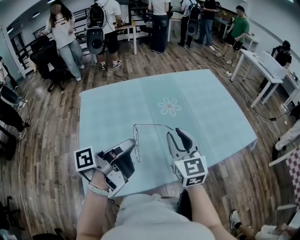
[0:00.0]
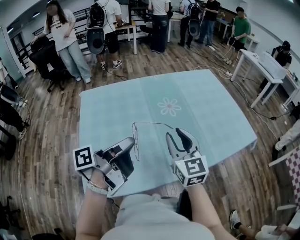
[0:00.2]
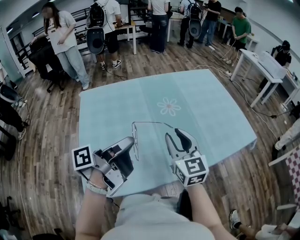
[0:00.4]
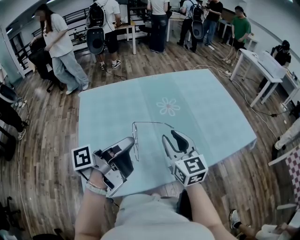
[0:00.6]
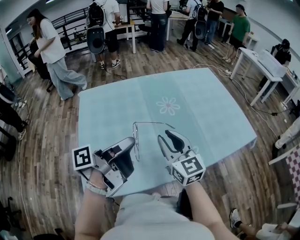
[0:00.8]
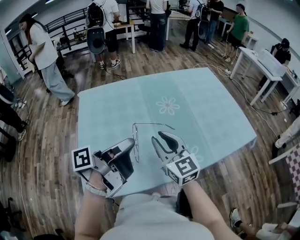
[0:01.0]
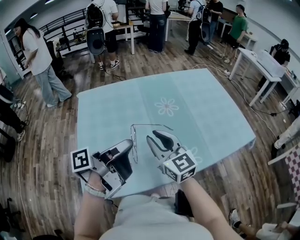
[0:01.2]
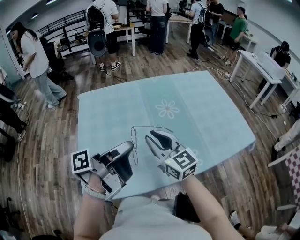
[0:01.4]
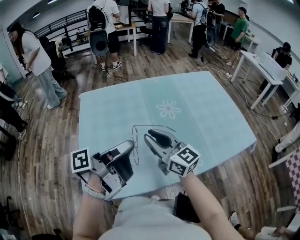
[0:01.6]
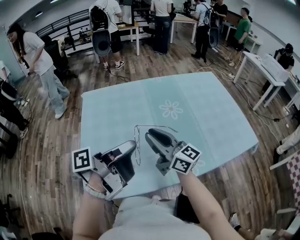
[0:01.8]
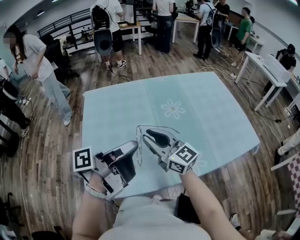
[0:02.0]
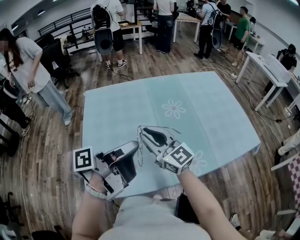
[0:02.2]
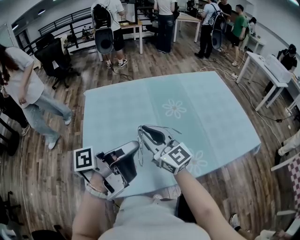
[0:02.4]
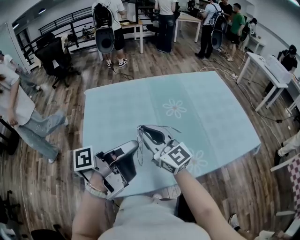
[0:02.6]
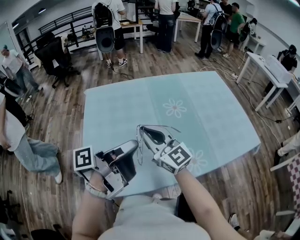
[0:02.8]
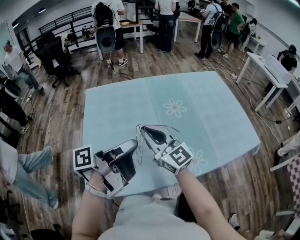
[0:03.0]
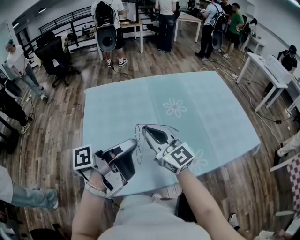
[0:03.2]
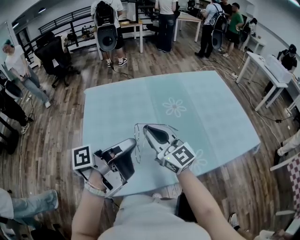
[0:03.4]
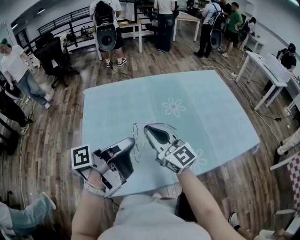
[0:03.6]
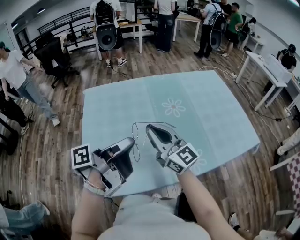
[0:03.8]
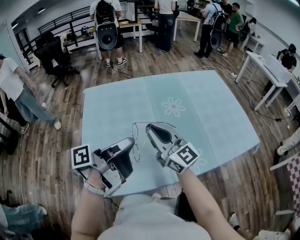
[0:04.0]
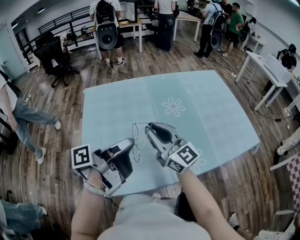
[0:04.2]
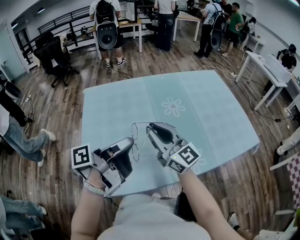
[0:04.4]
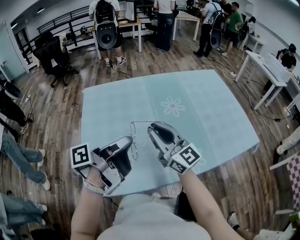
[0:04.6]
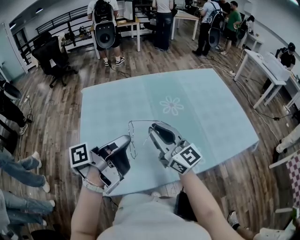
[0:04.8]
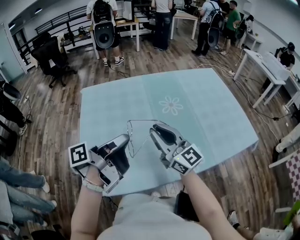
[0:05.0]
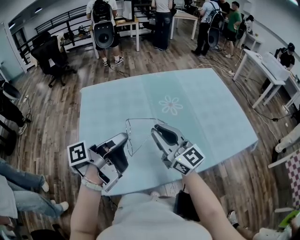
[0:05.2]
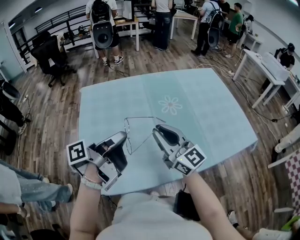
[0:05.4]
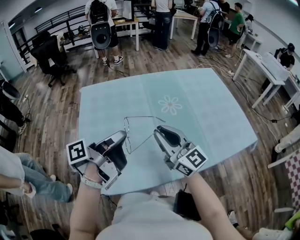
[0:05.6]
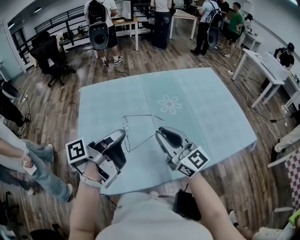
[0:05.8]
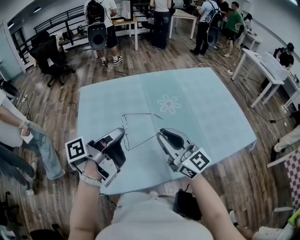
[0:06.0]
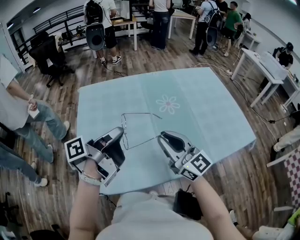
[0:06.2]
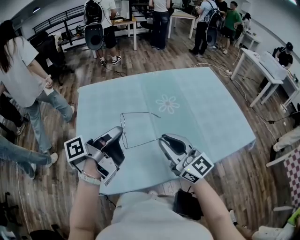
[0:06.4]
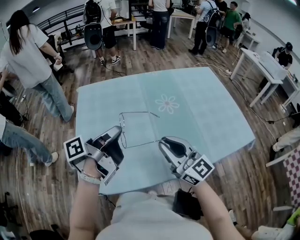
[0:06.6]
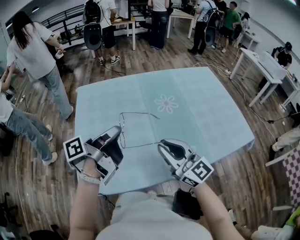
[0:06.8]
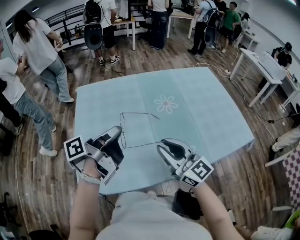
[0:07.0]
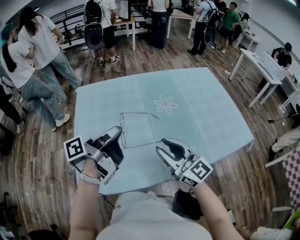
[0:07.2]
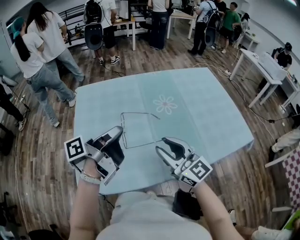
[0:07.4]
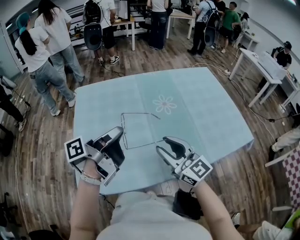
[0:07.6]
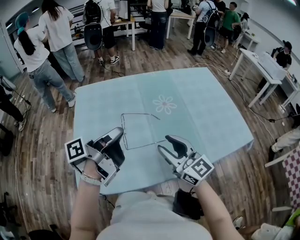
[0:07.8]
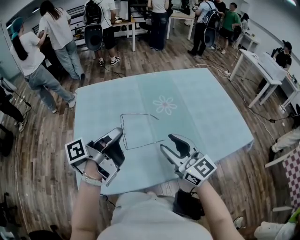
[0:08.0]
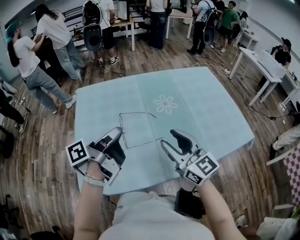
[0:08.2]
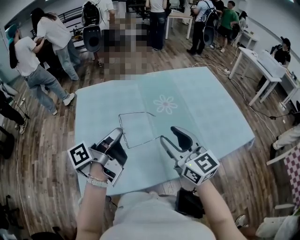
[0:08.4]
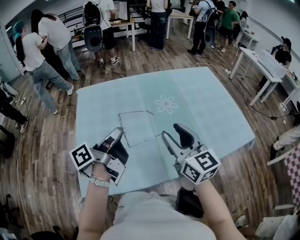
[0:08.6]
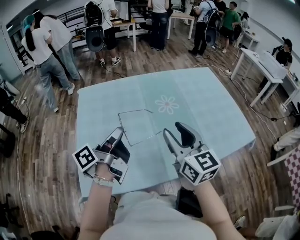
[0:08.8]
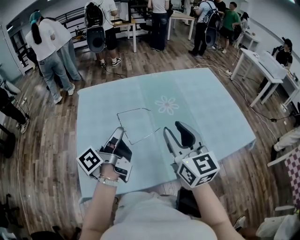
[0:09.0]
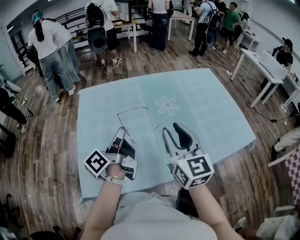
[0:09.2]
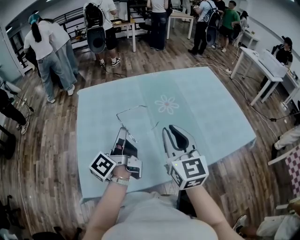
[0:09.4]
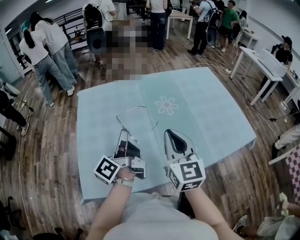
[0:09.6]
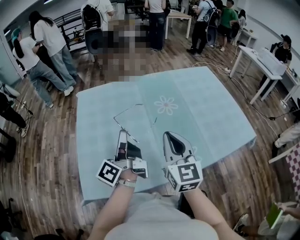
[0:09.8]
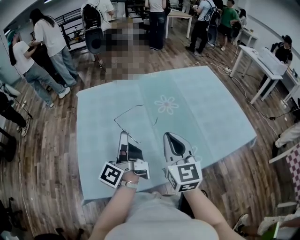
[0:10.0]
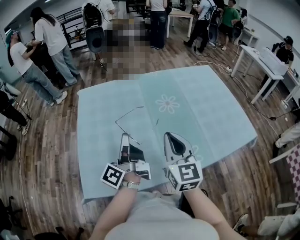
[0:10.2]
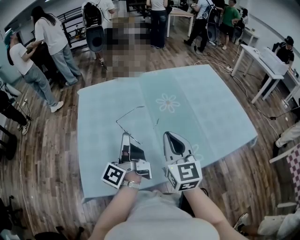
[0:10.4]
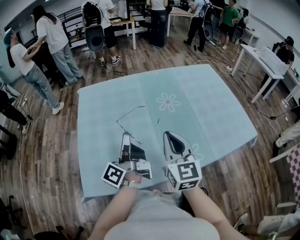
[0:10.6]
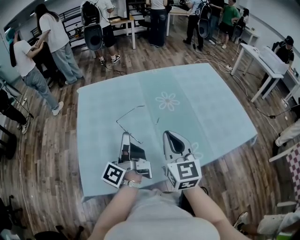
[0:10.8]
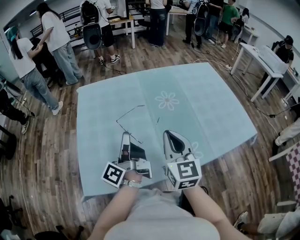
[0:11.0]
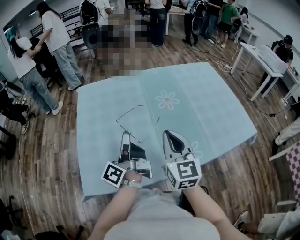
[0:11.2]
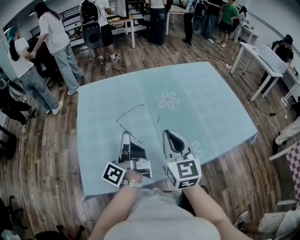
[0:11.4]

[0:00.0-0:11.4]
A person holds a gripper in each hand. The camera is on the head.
0:00.0 to 0:01.4: The right gripper shifts by some 5 cm, and rotates about 20 degrees.
0:01.4 to 0:02.8: The right gripper ends up some 5 cm from where it was.
0:04.2 to 0:05.6: The right gripper ends up some 5 cm from where it was.
0:05.6 to 0:07.2: The right gripper moves some 5 cm.
0:07.2 to 0:08.6: The right gripper ends up roughly 5 cm from where it was, and turns by some 20 degrees.
0:08.6 to 0:10.0: The right gripper closes.

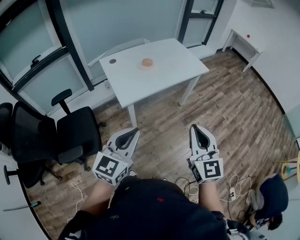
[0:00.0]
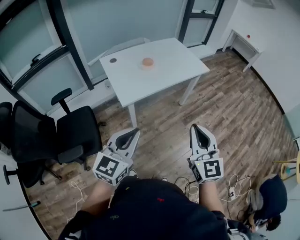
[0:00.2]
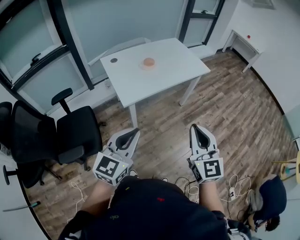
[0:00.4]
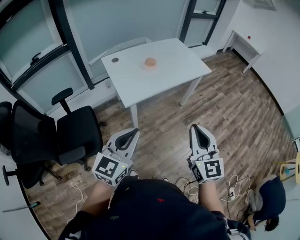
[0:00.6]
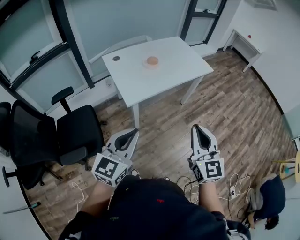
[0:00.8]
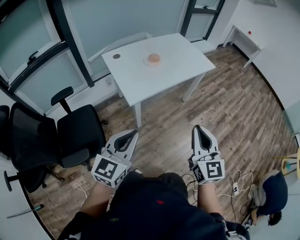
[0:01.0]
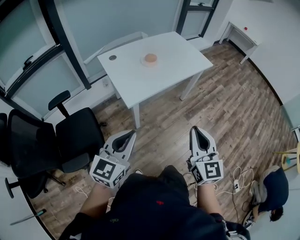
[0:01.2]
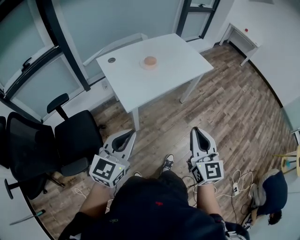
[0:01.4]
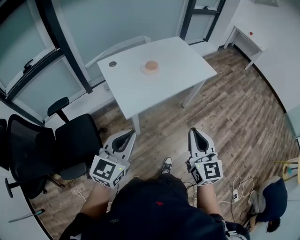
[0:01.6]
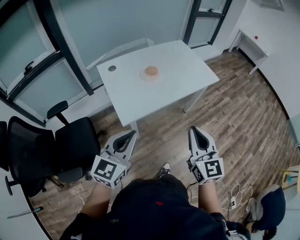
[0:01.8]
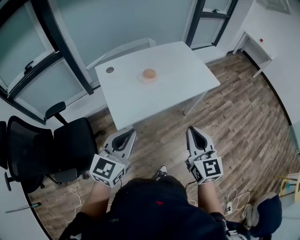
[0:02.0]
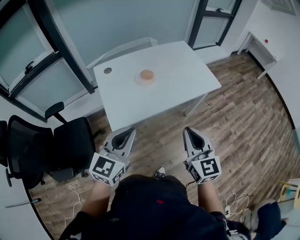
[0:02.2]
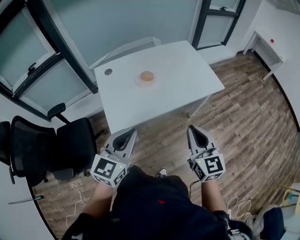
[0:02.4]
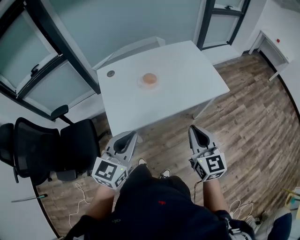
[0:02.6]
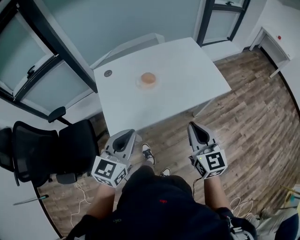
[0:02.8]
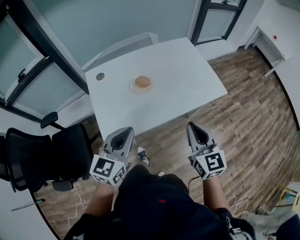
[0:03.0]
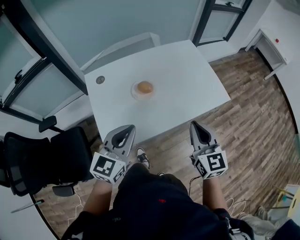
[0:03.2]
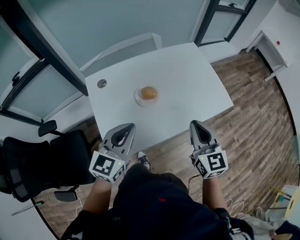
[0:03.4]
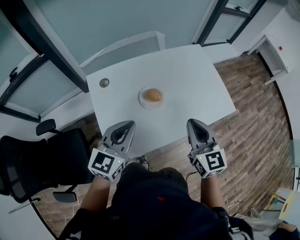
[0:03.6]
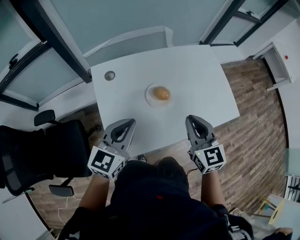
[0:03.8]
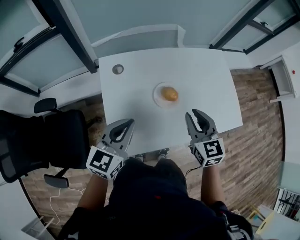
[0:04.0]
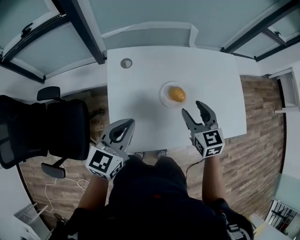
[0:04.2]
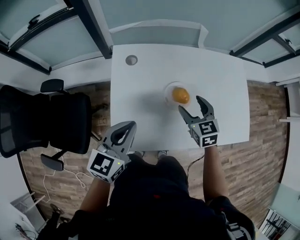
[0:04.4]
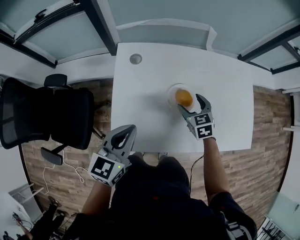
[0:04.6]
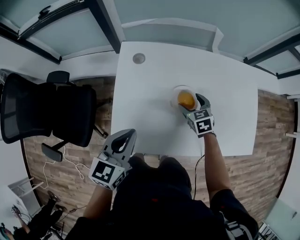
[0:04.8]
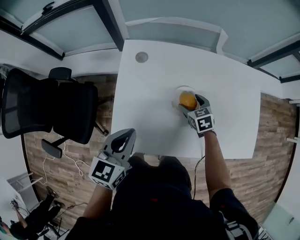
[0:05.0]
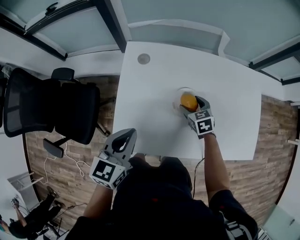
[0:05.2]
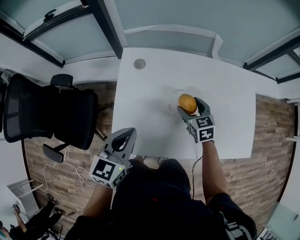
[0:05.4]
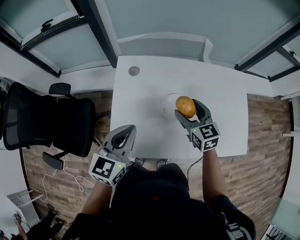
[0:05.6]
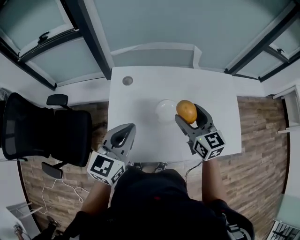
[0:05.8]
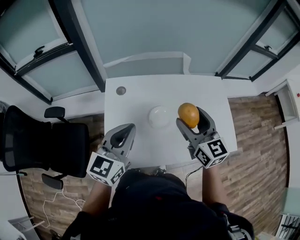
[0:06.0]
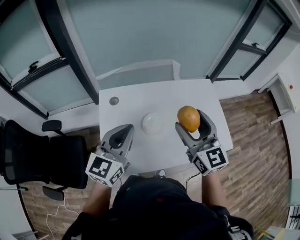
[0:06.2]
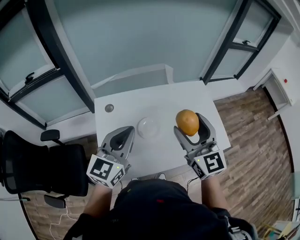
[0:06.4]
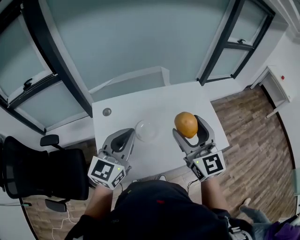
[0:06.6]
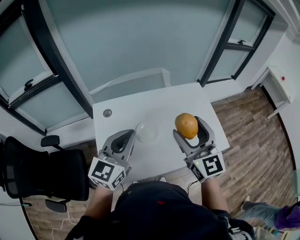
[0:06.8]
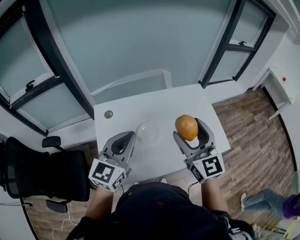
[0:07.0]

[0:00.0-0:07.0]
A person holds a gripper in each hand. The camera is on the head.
0:00.0 to 0:01.4: Both grippers move to the left and forward, approximately 10 cm.
0:01.4 to 0:02.8: The right gripper travels forward by some 35 cm, and changes its angle by some 20 degrees. The left gripper heads forward and to the right, covering roughly 30 cm.
0:02.8 to 0:04.2: The two grippers go about 30 cm forward and to the left. The right gripper swivels some 30 degrees, and opens up.
0:04.2 to 0:05.6: The right gripper heads forward, covering roughly 5 cm, goes downward and returns, some 20 cm each way, and opens up.
0:05.6 to 0:07.0: The right gripper moves upward, to the right and backward, some 30 cm, and turns by about 30 degrees. The left gripper is displaced upward and to the right by about 15 cm, and changes its angle by approximately 20 degrees.

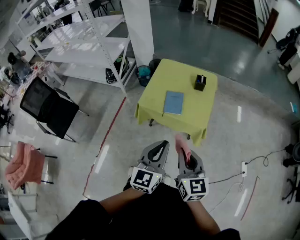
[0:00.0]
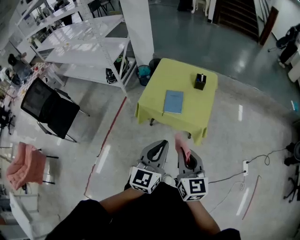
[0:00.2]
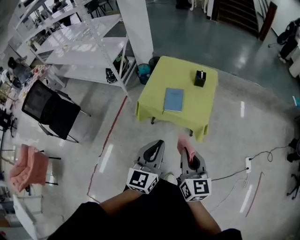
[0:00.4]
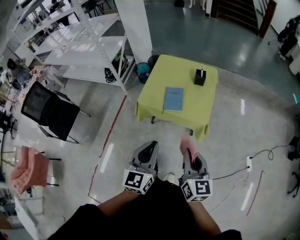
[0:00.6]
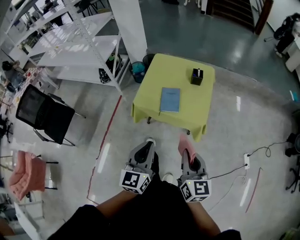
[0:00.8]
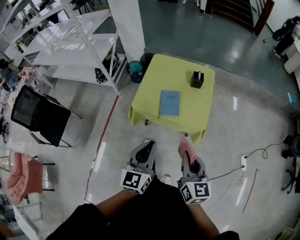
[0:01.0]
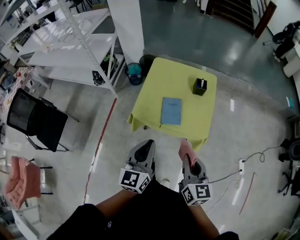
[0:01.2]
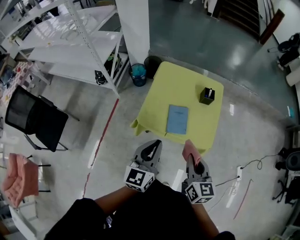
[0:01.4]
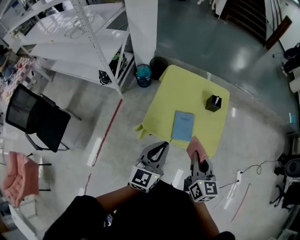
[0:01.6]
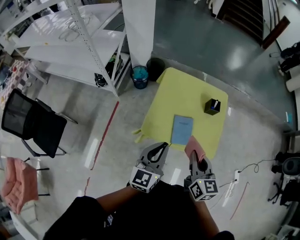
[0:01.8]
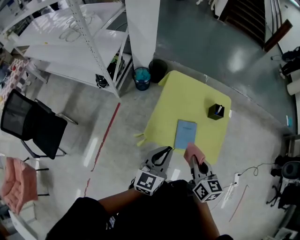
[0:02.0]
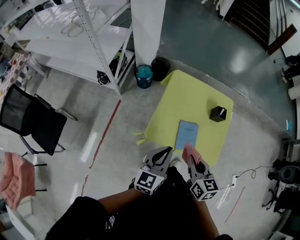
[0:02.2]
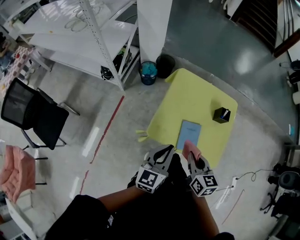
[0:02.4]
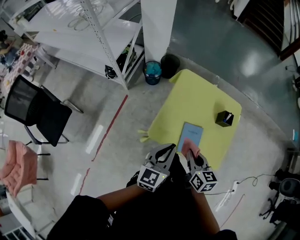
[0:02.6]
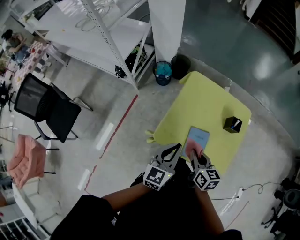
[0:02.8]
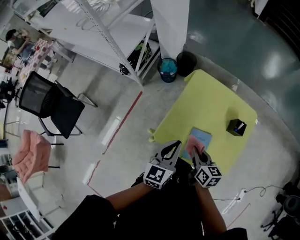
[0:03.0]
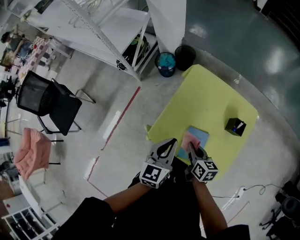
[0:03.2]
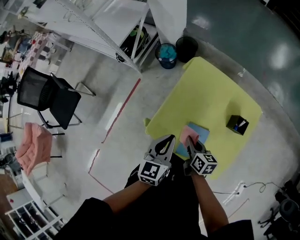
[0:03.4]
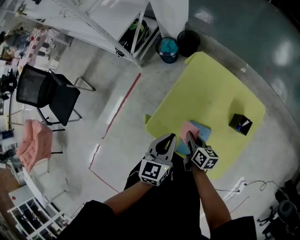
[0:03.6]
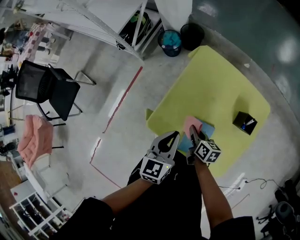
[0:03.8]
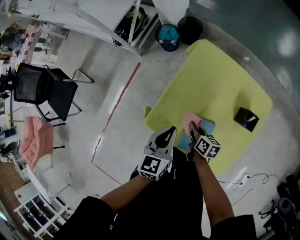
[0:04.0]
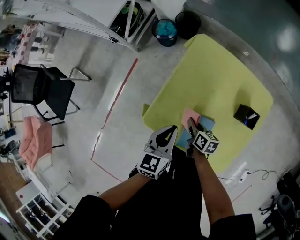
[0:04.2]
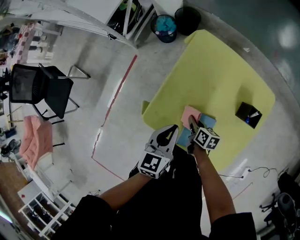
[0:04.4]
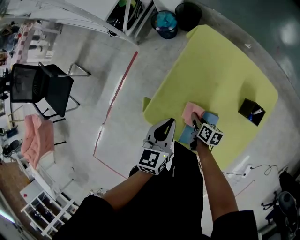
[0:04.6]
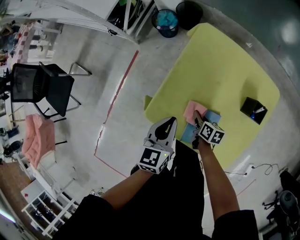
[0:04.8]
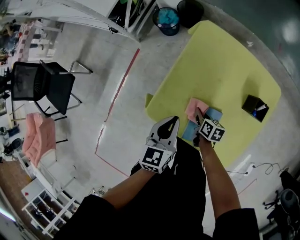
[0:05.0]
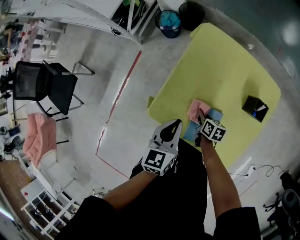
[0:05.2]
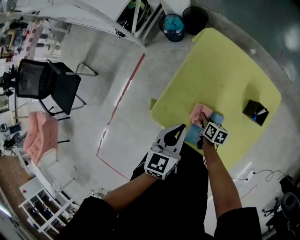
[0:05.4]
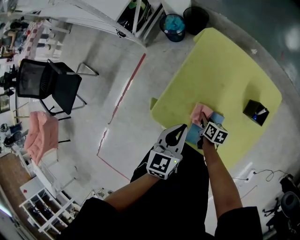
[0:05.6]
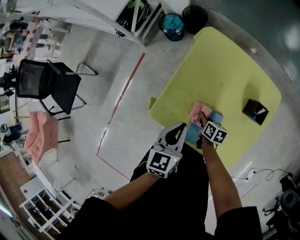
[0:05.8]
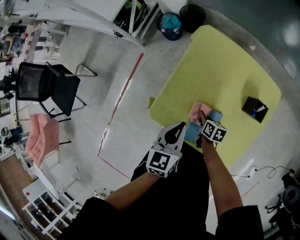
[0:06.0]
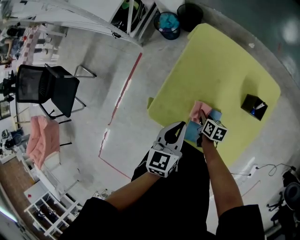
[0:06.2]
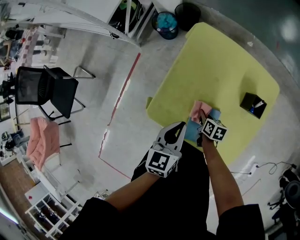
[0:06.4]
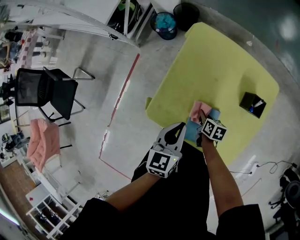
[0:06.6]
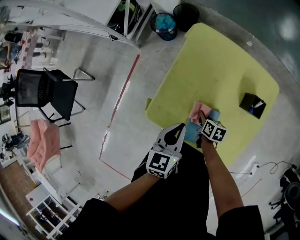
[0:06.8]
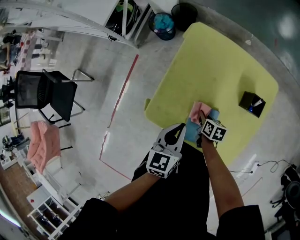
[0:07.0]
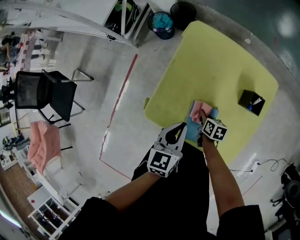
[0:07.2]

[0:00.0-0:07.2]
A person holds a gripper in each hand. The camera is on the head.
0:00.0 to 0:01.4: The right gripper heads forward, covering about 25 cm. The left gripper moves forward and to the left, roughly 30 cm.
0:01.4 to 0:02.8: The left gripper goes approximately 20 cm forward. Meanwhile the right gripper heads forward and downward, covering about 25 cm, and turns by some 20 degrees.
0:02.8 to 0:04.4: The right gripper is displaced downward by about 30 cm, and swivels about 30 degrees, while the left gripper shifts some 20 cm downward and forward, and rotates about 20 degrees.
0:04.4 to 0:07.2: The grippers make only small movements.
